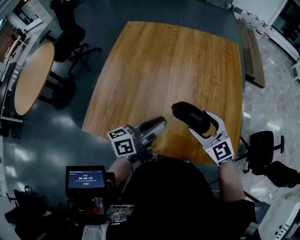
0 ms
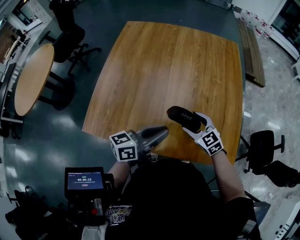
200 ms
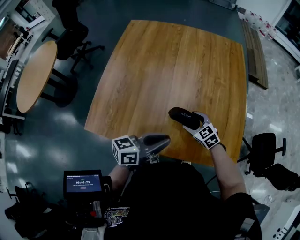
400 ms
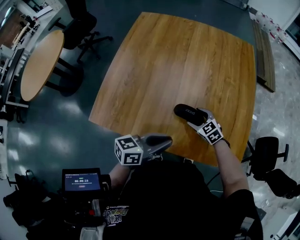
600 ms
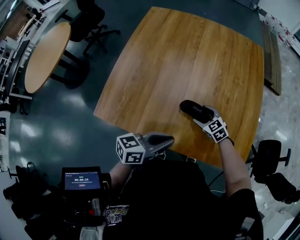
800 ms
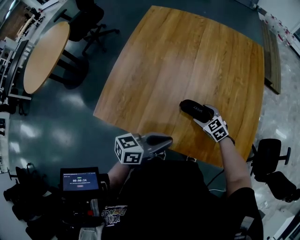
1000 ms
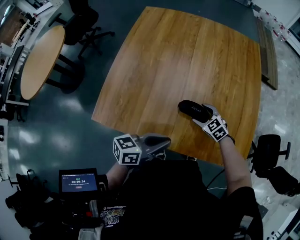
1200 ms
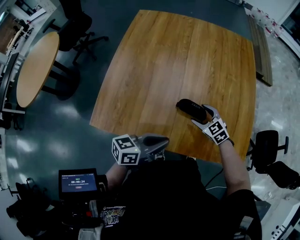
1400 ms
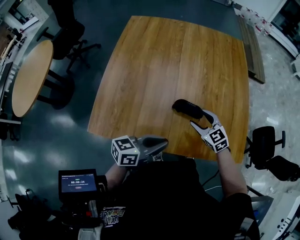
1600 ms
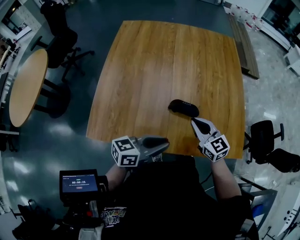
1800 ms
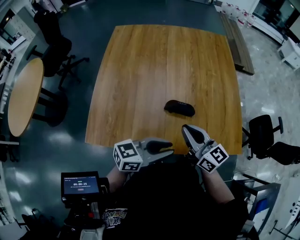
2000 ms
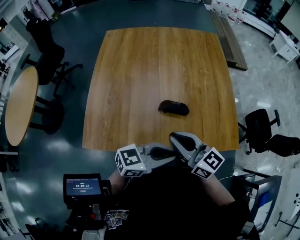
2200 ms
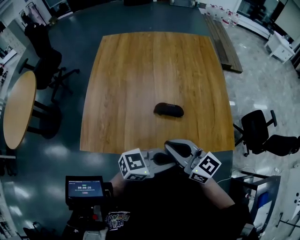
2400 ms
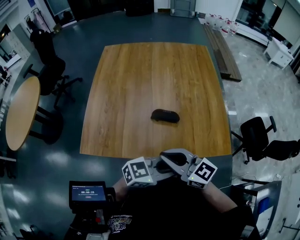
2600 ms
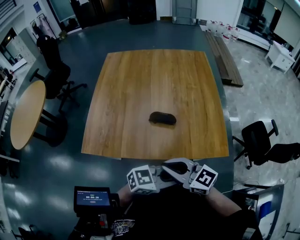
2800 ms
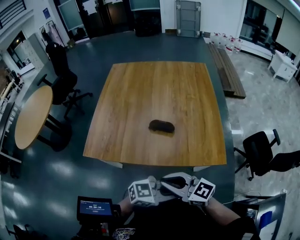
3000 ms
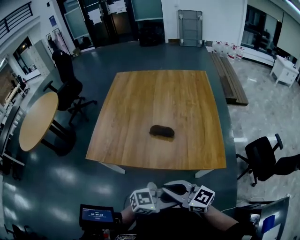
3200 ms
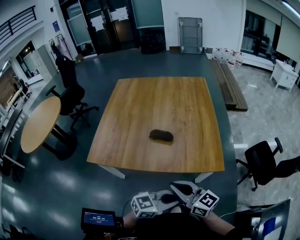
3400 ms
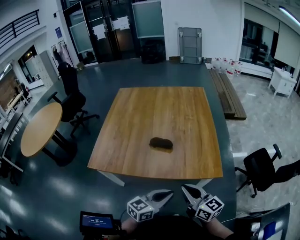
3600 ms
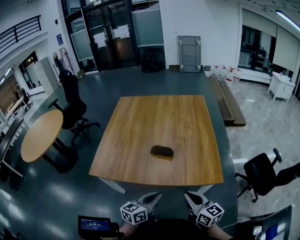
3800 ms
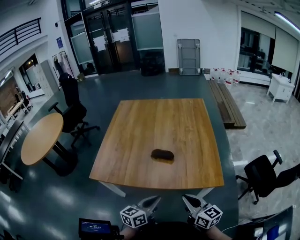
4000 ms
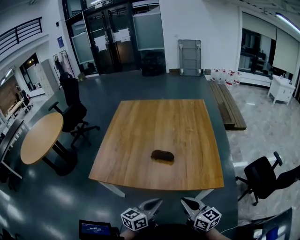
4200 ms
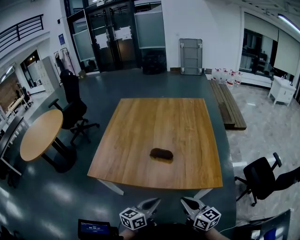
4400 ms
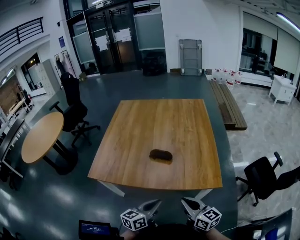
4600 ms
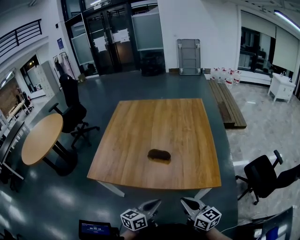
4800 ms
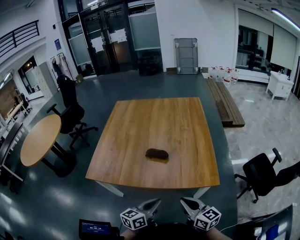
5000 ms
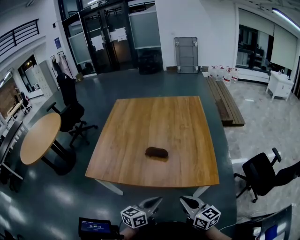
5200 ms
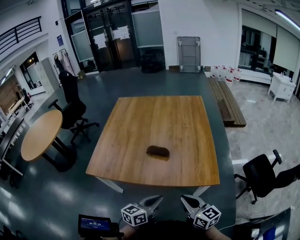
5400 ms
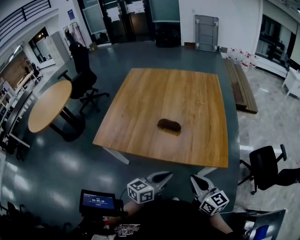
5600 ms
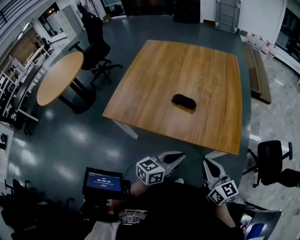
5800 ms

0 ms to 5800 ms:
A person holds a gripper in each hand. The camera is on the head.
0 ms to 1400 ms: The right gripper goes roughly 20 cm downward, and changes its angle by some 20 degrees; the left gripper moves backward and downward, approximately 10 cm, and swivels about 20 degrees.
1400 ms to 2800 ms: The left gripper moves some 20 cm, and turns by roughly 40 degrees, while the right gripper heads upward, covering some 25 cm, angles its fingers upward, by some 40 degrees, and closes.
2800 ms to 4400 ms: The left gripper is displaced downward by some 5 cm, and changes its angle by some 50 degrees. The right gripper ends up roughly 15 cm from where it was, and changes its angle by about 30 degrees.
4400 ms to 5800 ms: The left gripper ends up roughly 5 cm from where it was.

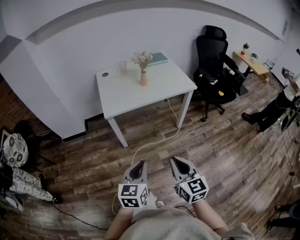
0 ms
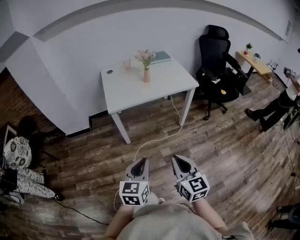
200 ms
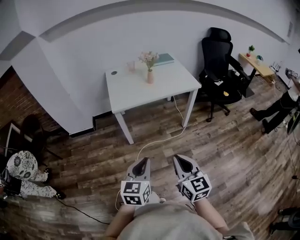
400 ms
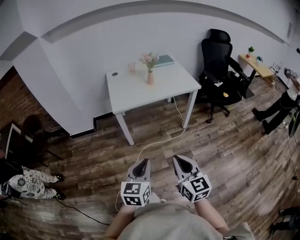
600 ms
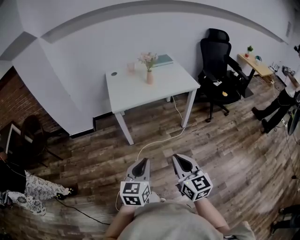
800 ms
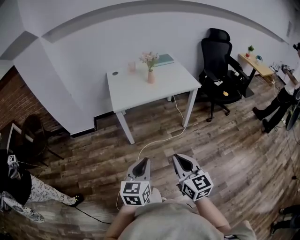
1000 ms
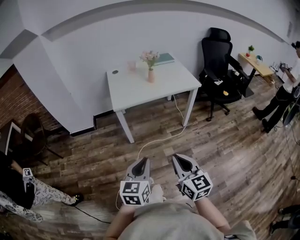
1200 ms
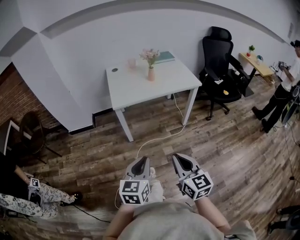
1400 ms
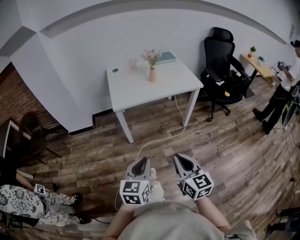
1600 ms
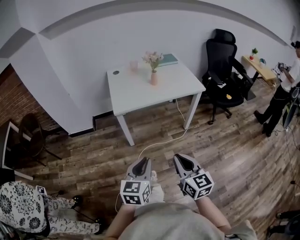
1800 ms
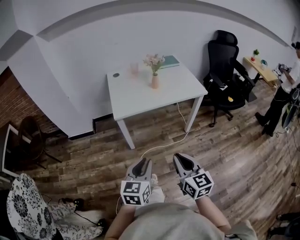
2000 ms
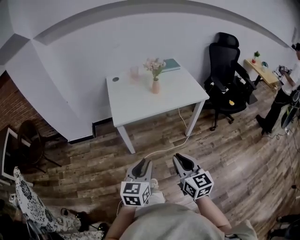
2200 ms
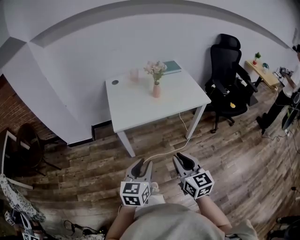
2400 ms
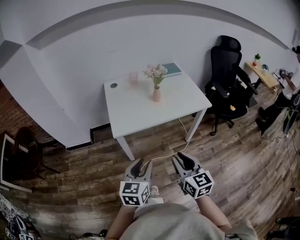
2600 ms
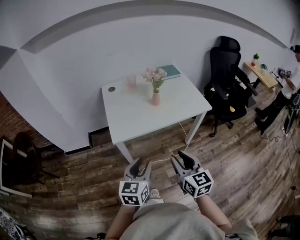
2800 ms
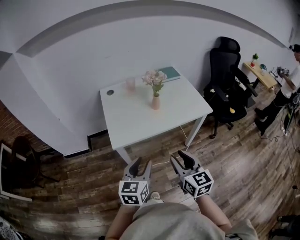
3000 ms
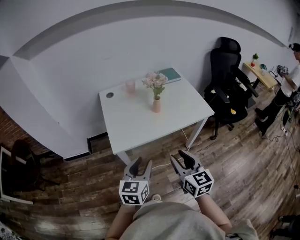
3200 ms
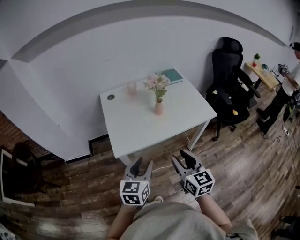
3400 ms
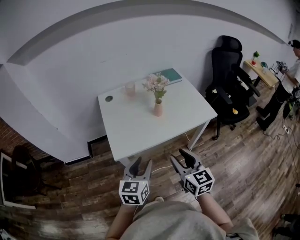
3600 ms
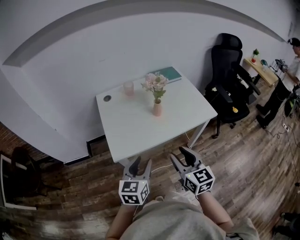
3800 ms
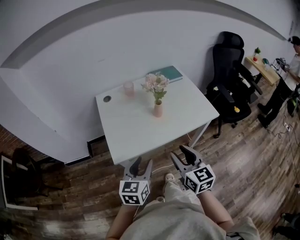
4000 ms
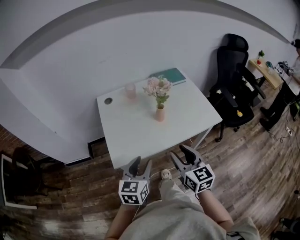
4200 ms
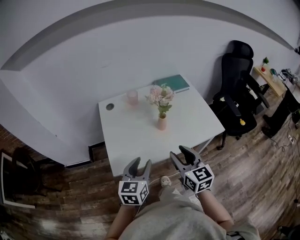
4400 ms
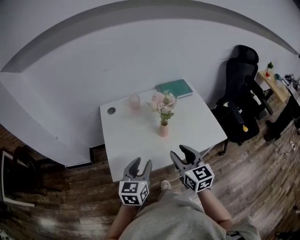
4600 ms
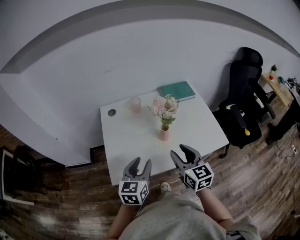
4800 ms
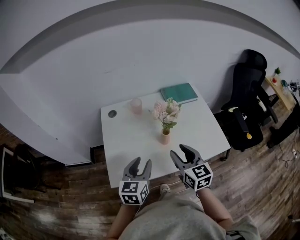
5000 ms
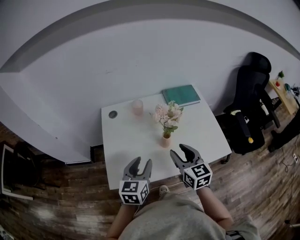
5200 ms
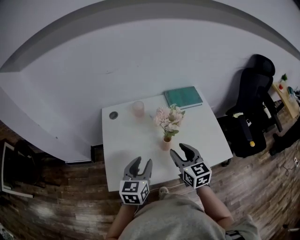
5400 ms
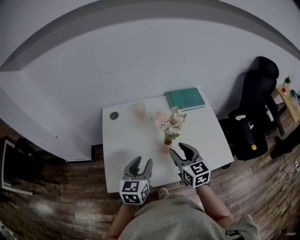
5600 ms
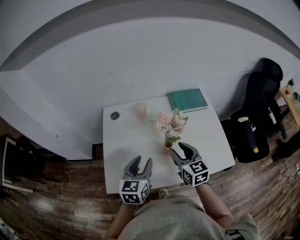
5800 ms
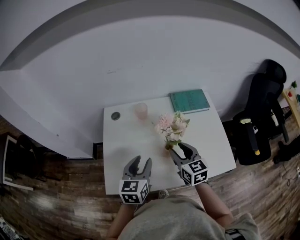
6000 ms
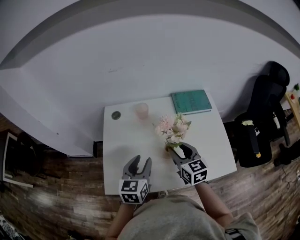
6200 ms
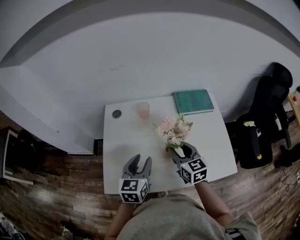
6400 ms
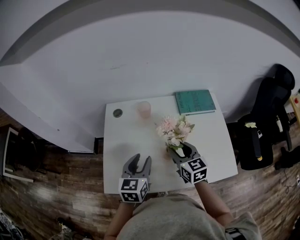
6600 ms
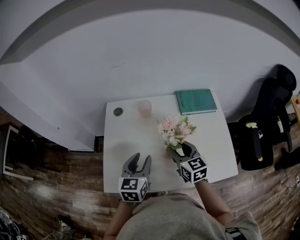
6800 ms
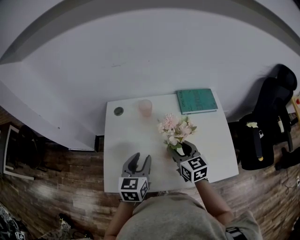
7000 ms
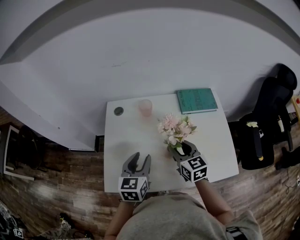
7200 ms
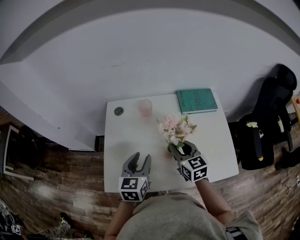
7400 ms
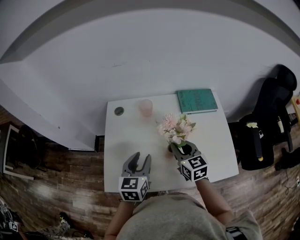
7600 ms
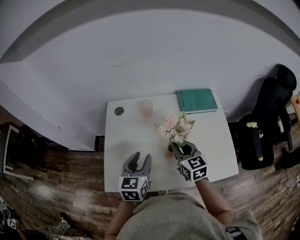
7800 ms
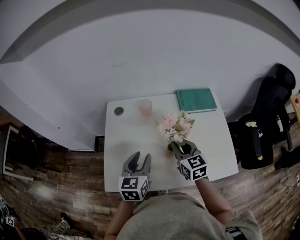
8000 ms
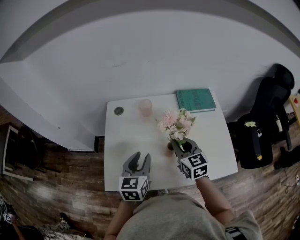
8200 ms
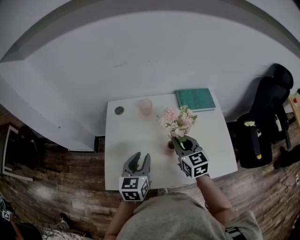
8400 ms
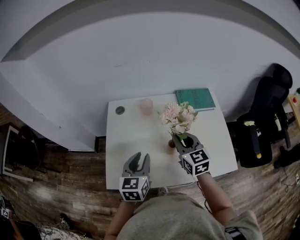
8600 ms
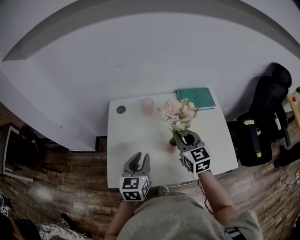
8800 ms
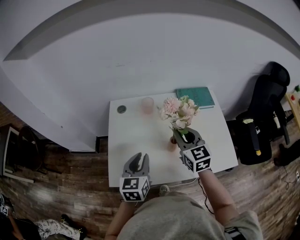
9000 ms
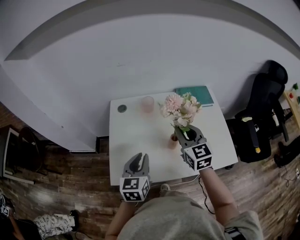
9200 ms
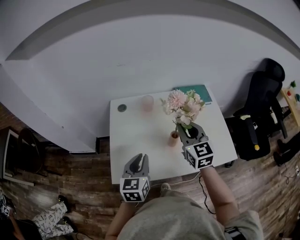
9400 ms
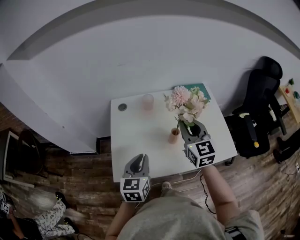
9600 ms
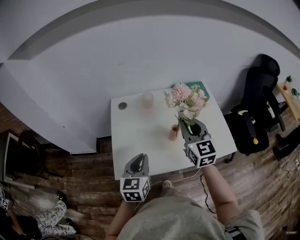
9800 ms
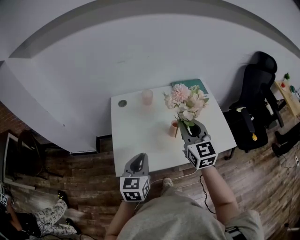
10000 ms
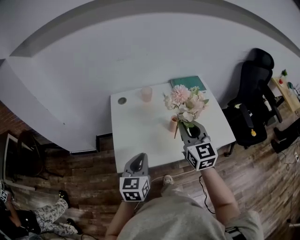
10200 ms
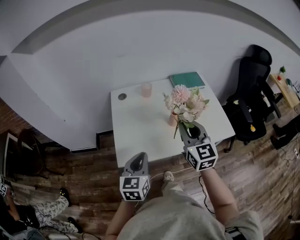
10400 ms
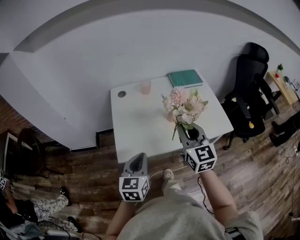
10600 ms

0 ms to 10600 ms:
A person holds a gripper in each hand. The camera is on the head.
1600 ms to 3000 ms: Both grippers move forward, approximately 30 cm. The left gripper opens up; the right gripper opens.
3000 ms to 4600 ms: Both grippers move forward, some 25 cm.
4600 ms to 6000 ms: Both grippers move forward, about 15 cm.
6000 ms to 7600 ms: The right gripper closes.
7600 ms to 9000 ms: The right gripper travels upward by about 10 cm. Meanwhile the left gripper changes place by some 5 cm.
9000 ms to 10600 ms: The grippers both shift backward by about 20 cm.

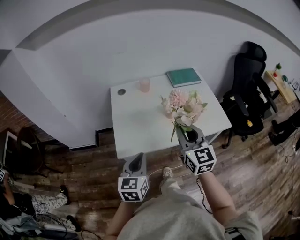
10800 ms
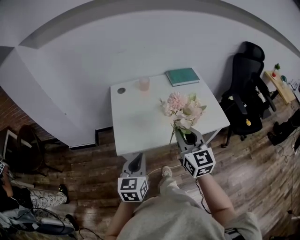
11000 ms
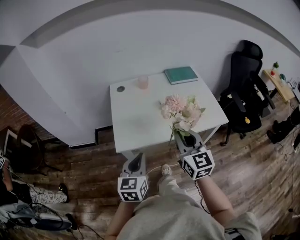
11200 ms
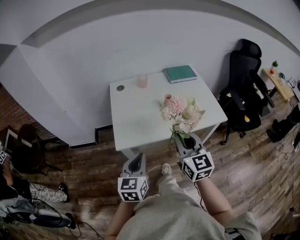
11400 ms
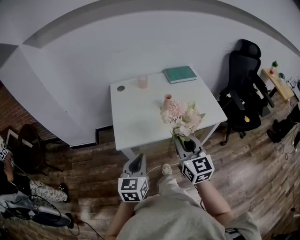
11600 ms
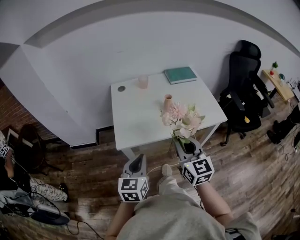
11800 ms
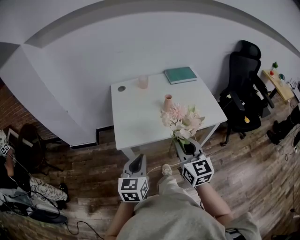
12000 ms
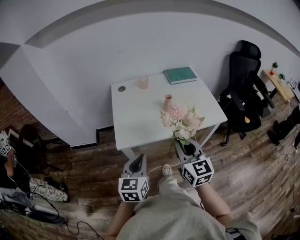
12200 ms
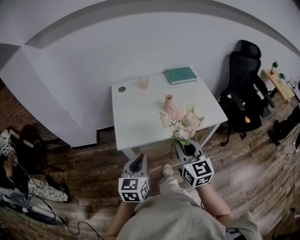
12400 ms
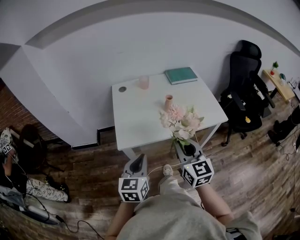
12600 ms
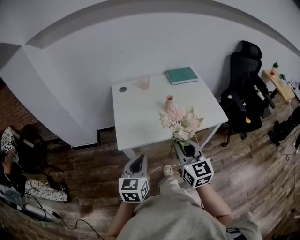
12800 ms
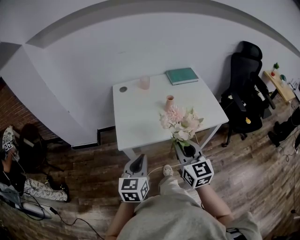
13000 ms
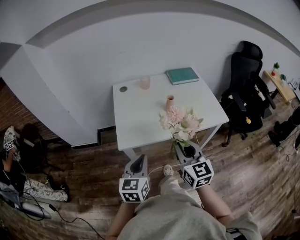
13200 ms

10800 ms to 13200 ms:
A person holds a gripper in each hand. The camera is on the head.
10800 ms to 12000 ms: The left gripper heads backward, covering approximately 5 cm. Meanwhile the right gripper heads backward, covering roughly 10 cm.
12000 ms to 13200 ms: The two grippers keep their place.

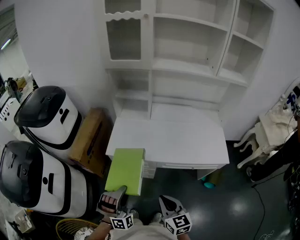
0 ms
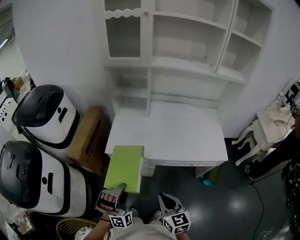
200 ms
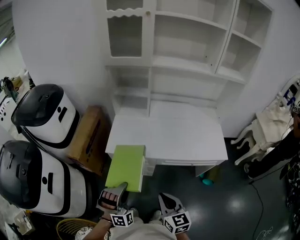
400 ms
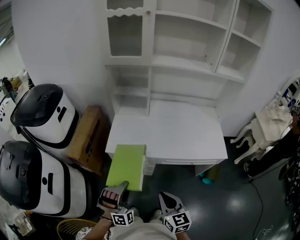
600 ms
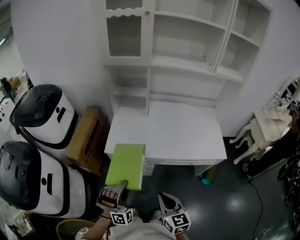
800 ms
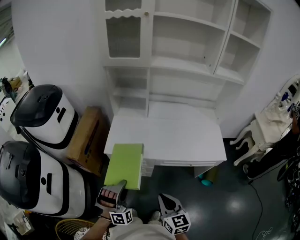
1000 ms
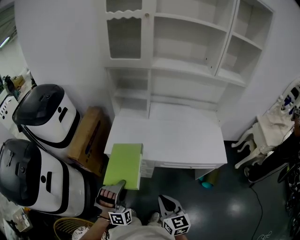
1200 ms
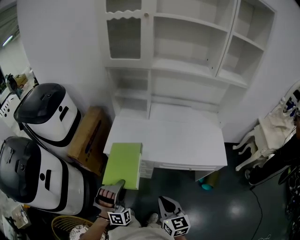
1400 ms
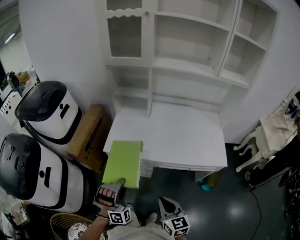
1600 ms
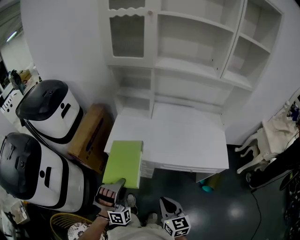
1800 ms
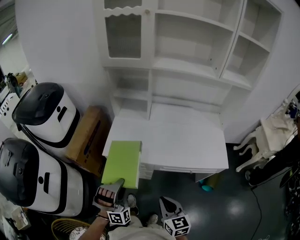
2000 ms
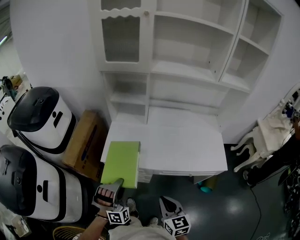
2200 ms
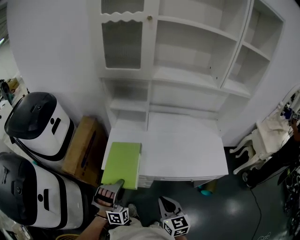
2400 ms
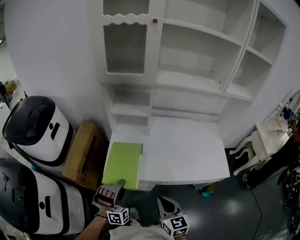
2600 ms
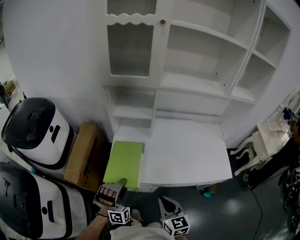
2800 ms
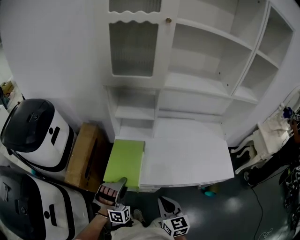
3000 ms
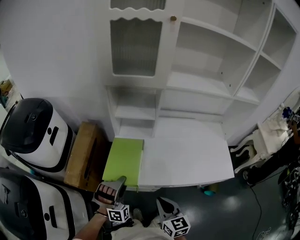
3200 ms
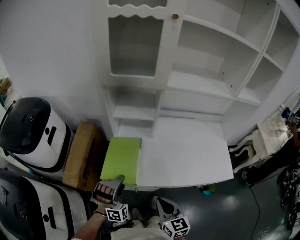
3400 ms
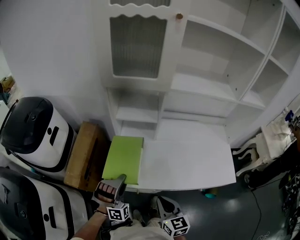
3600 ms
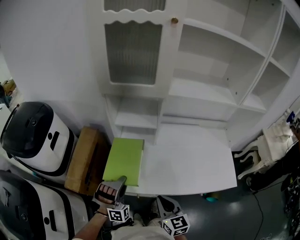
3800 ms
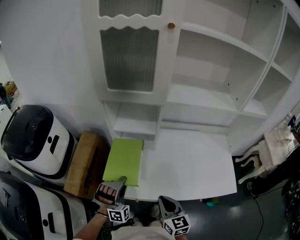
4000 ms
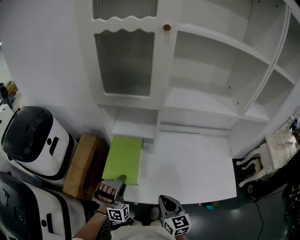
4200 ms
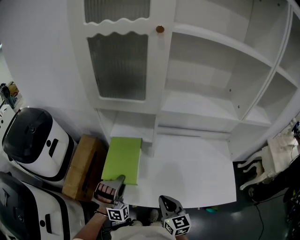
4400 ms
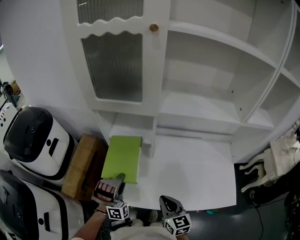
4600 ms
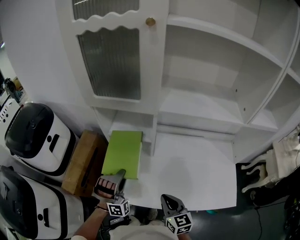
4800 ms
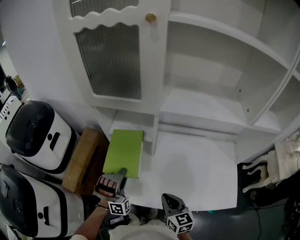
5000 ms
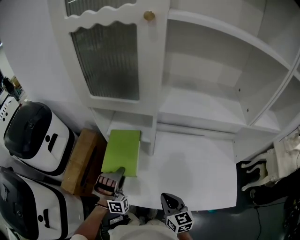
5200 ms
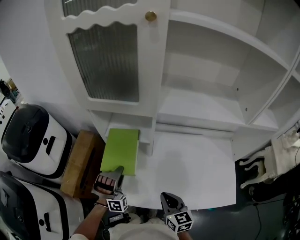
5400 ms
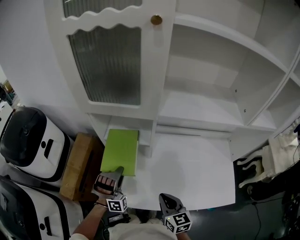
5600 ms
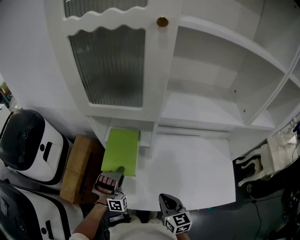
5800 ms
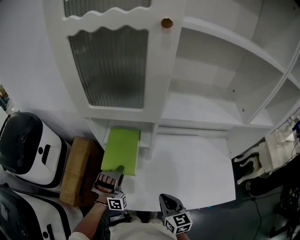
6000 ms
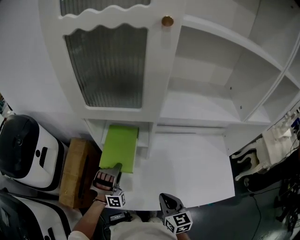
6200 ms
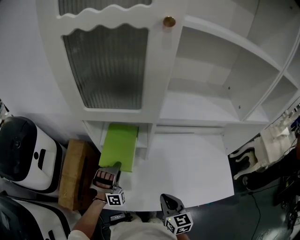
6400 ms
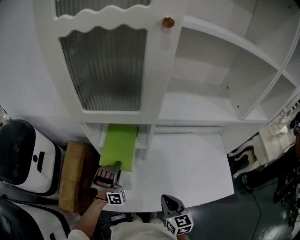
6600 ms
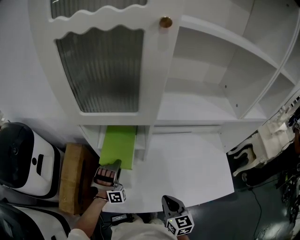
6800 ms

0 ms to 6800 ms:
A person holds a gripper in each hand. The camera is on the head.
1400 ms to 2800 ms: The right gripper shifts by some 20 cm.
2800 ms to 4000 ms: The right gripper moves approximately 10 cm.
4000 ms to 5400 ms: The right gripper moves some 10 cm.
